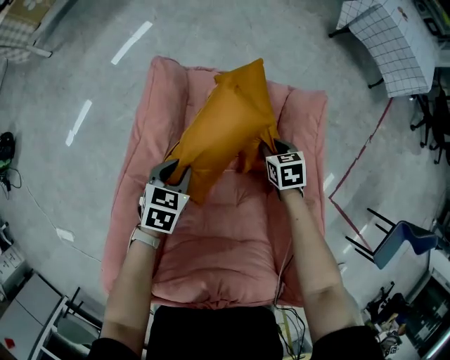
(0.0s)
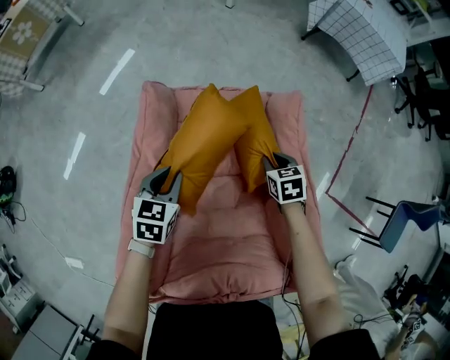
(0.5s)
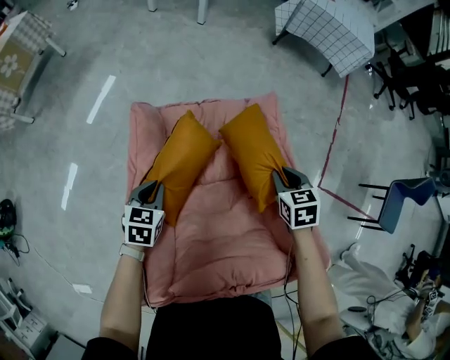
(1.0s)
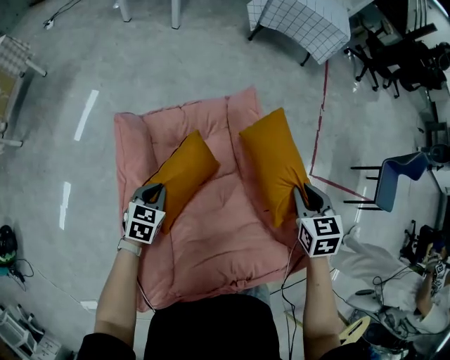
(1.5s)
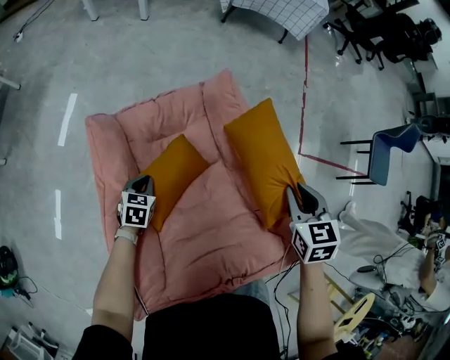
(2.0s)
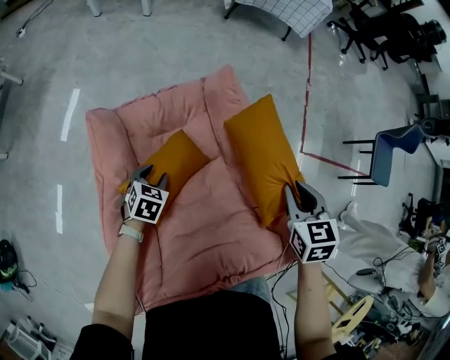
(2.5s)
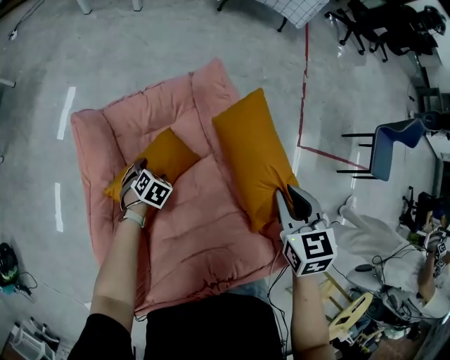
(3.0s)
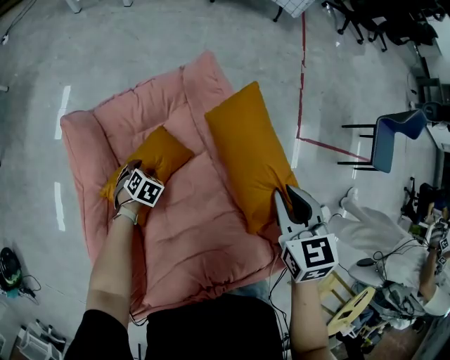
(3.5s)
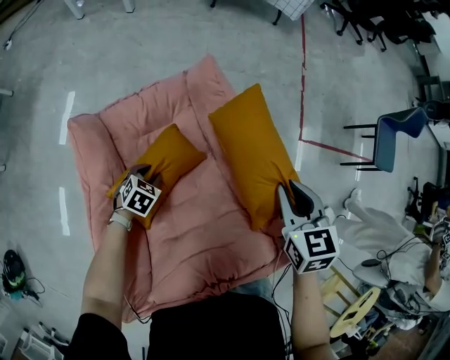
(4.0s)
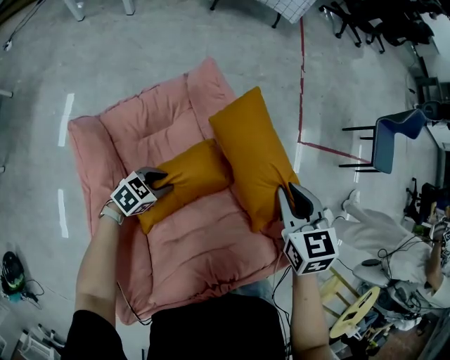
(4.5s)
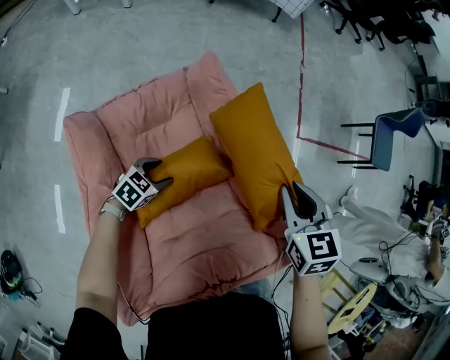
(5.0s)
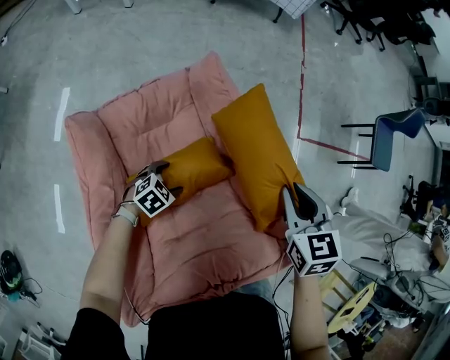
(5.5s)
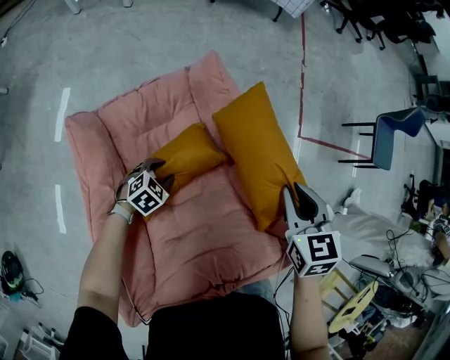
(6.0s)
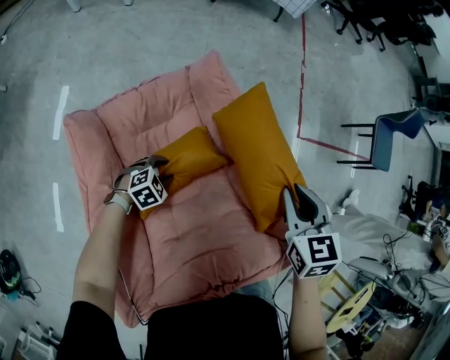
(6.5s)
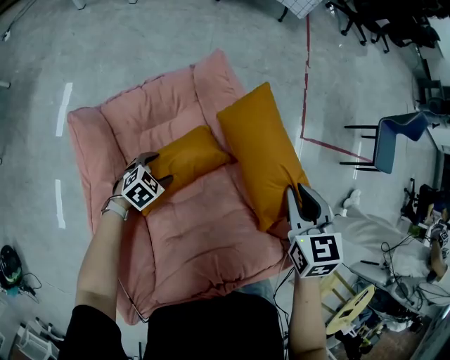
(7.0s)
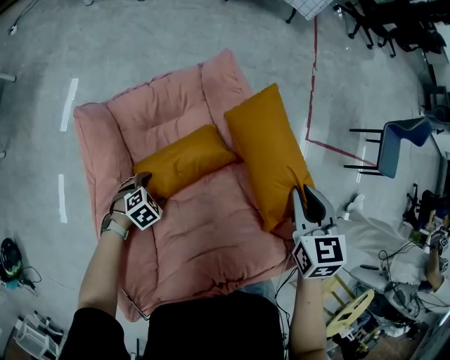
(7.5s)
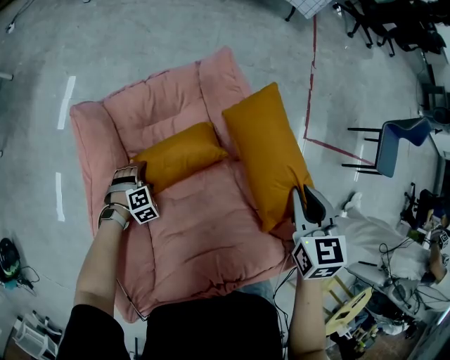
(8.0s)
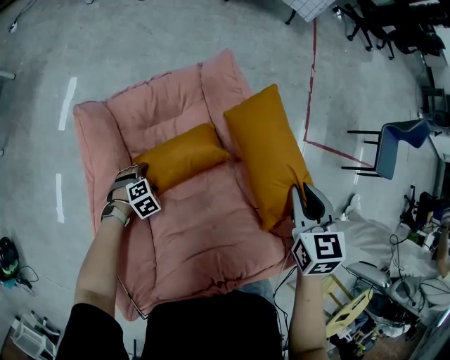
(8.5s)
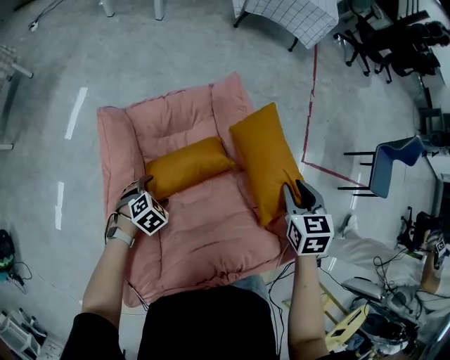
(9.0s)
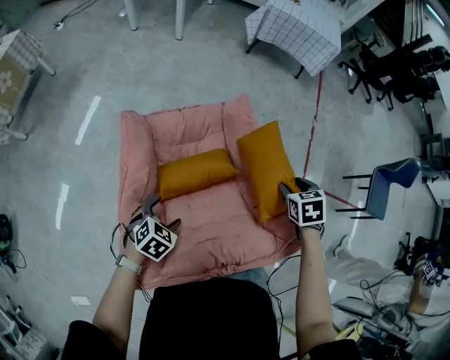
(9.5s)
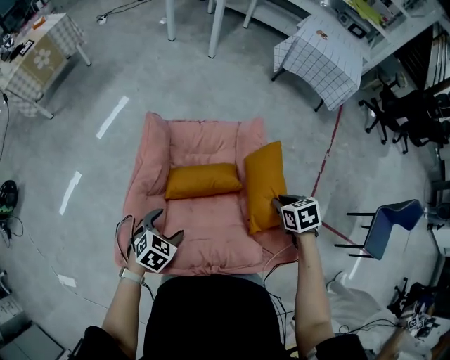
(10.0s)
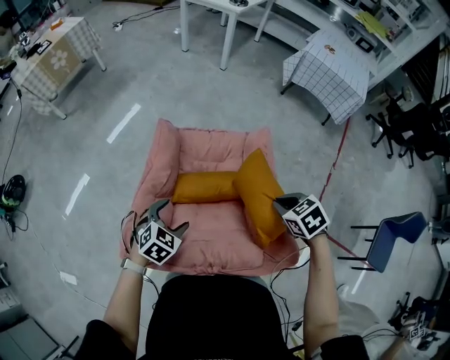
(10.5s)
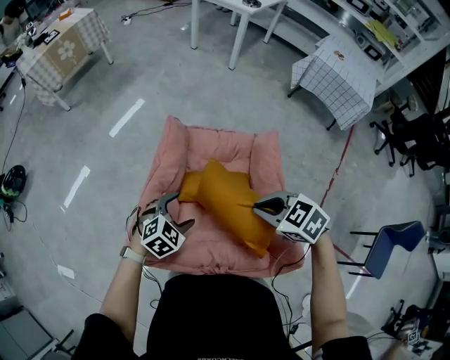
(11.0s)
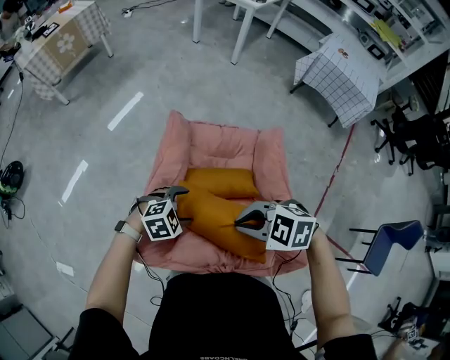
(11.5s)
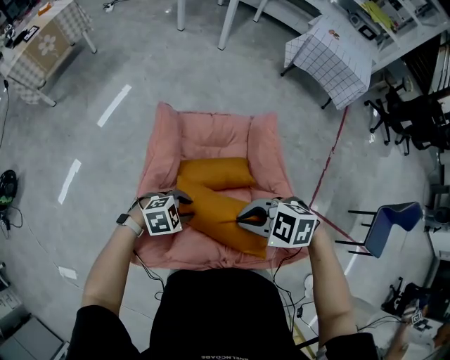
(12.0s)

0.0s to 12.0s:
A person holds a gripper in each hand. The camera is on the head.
0.0s to 2.0s: The left gripper turns by about 20 degrees. The right gripper travels upward by approximately 25 cm, and swivels approximately 40 degrees.
2.0s to 4.0s: The left gripper moves about 10 cm downward and comes back, rotates some 20 degrees, and opens, then closes again.
4.0s to 6.0s: The left gripper opens, then closes again.
6.0s to 8.0s: The left gripper moves approximately 10 cm, changes its angle by about 30 degrees, and opens.
8.0s to 10.0s: The left gripper goes approximately 30 cm upward, and rolls counterclockwise, seen from behind, by roughly 50 degrees. The right gripper turns by about 40 degrees, and opens, then closes once more.
10.0s to 12.0s: The left gripper turns by approximately 40 degrees, and closes up. Meanwhile the right gripper moves approximately 25 cm, and rotates around the line of its fingers by roughly 60 degrees, counterclockwise from behind.

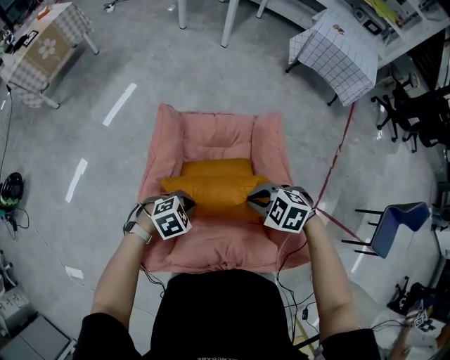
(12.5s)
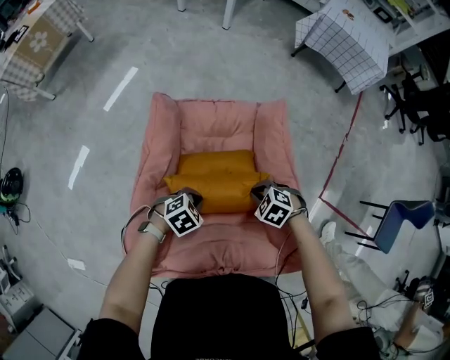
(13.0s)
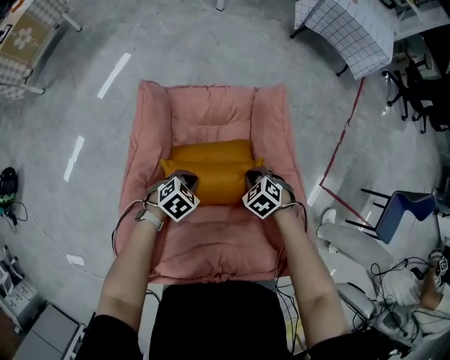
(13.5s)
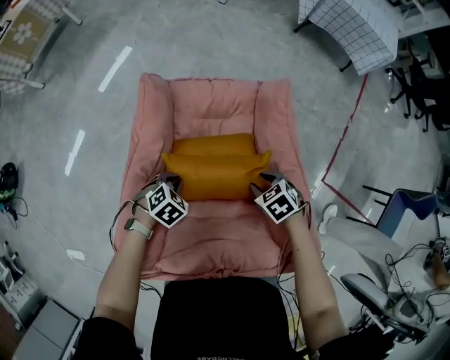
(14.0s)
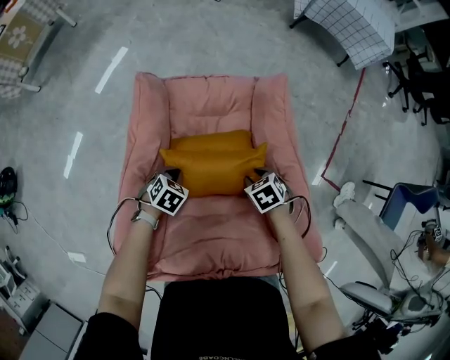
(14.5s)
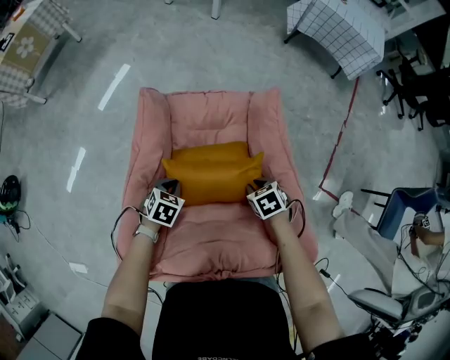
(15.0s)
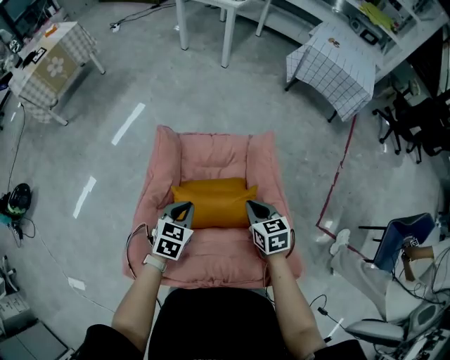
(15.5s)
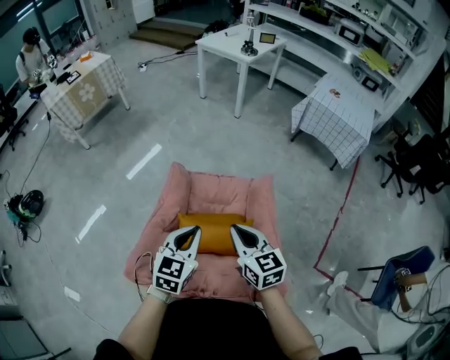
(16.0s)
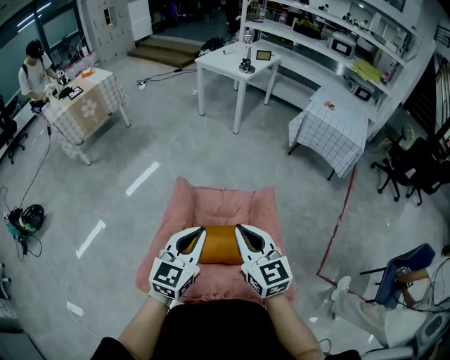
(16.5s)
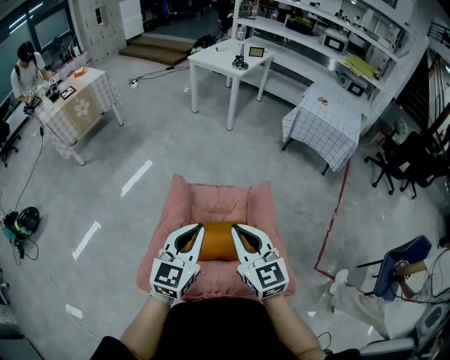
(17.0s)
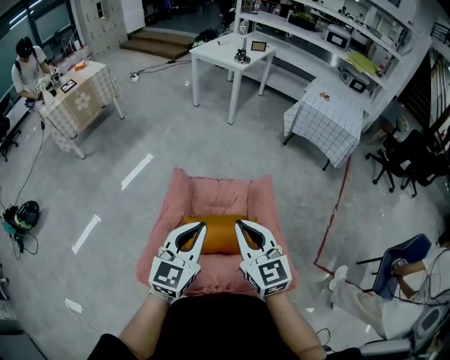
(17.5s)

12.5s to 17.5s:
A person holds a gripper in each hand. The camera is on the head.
12.5s to 15.0s: The left gripper shifts approximately 10 cm downward, and swivels roughly 40 degrees; the right gripper goes roughly 20 cm downward, and rotates around the line of its fingers by approximately 50 degrees, clockwise from behind.
15.0s to 17.5s: Both grippers move upward, about 40 cm. The left gripper points its fingers some 60 degrees further upward, while the right gripper angles its fingers upward, by roughly 60 degrees.

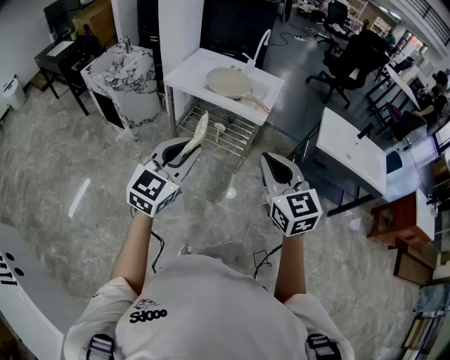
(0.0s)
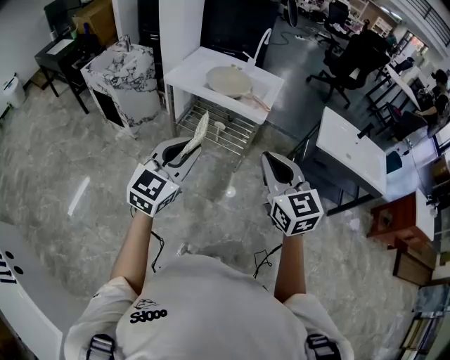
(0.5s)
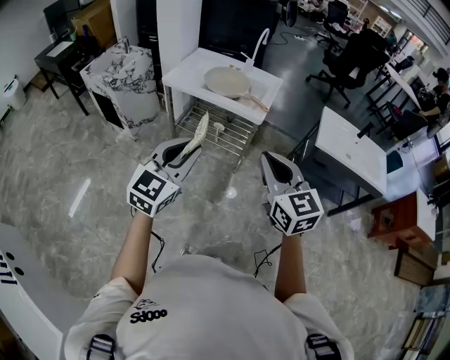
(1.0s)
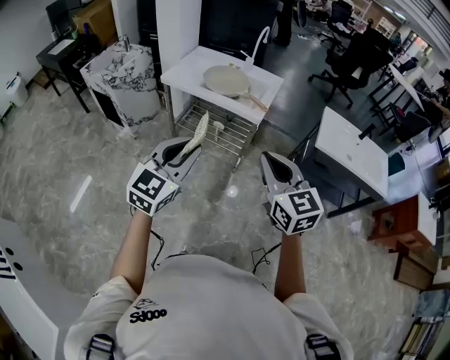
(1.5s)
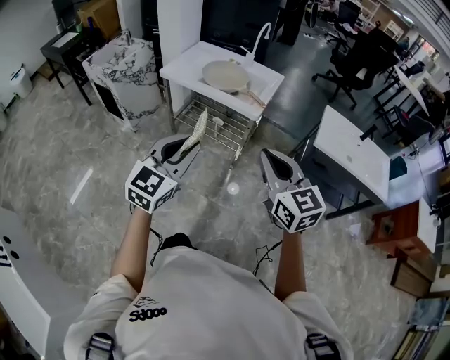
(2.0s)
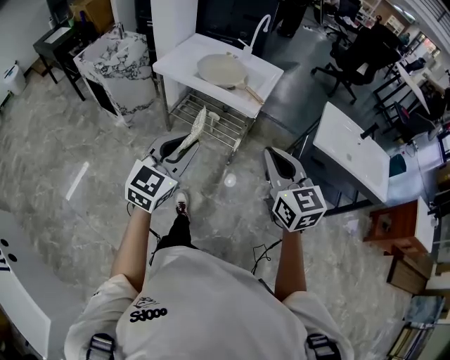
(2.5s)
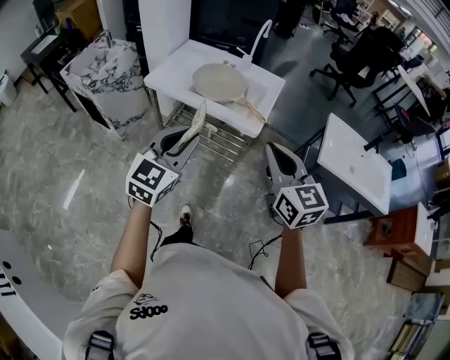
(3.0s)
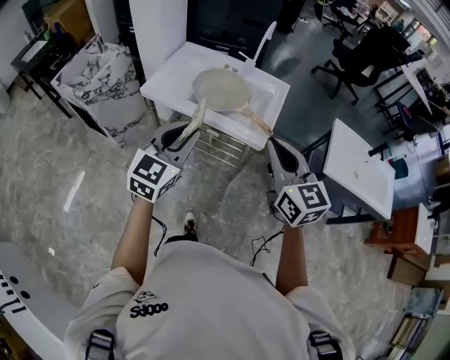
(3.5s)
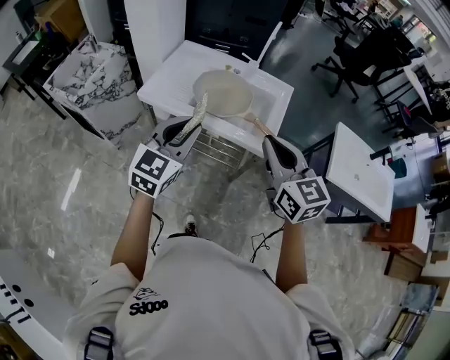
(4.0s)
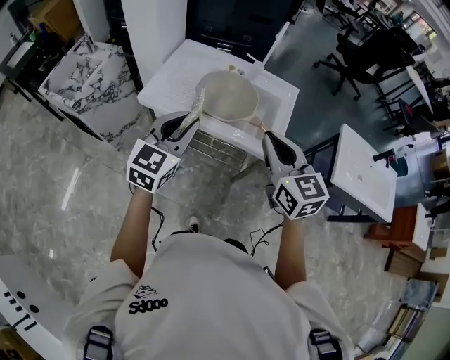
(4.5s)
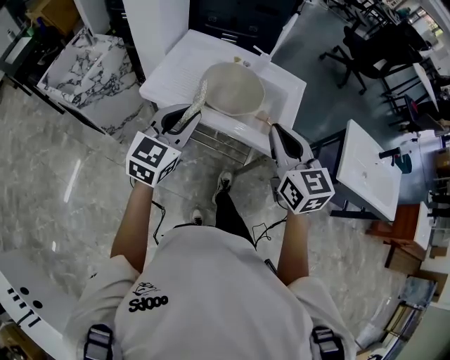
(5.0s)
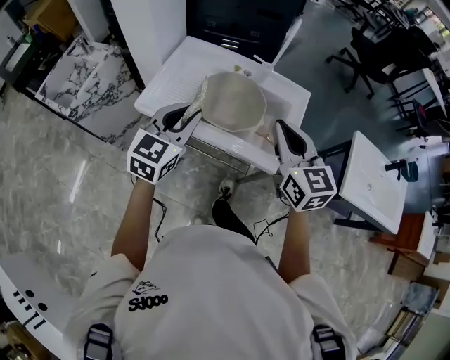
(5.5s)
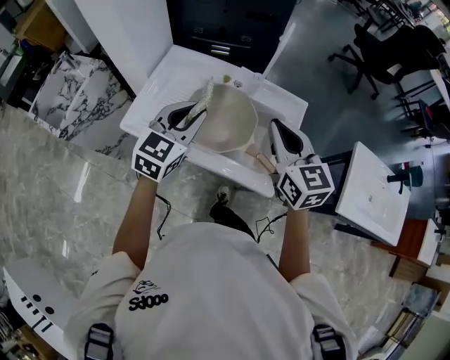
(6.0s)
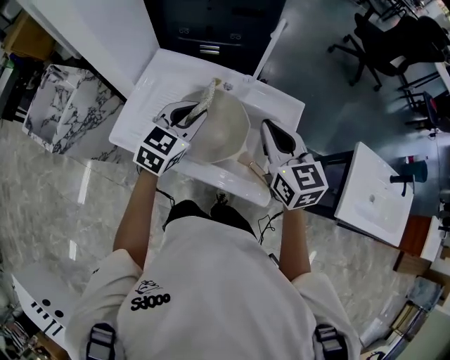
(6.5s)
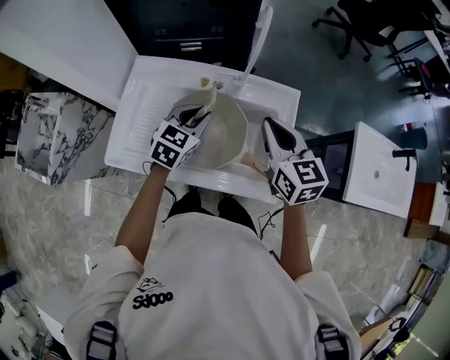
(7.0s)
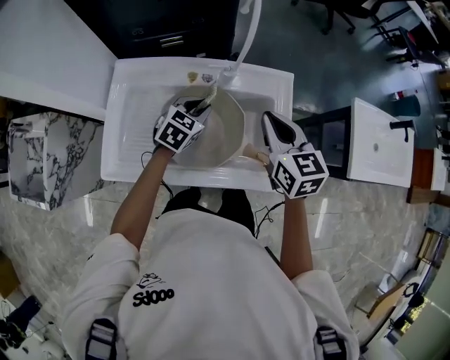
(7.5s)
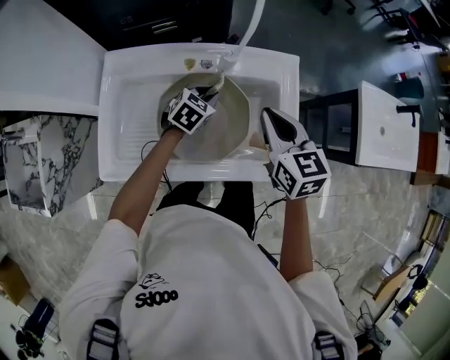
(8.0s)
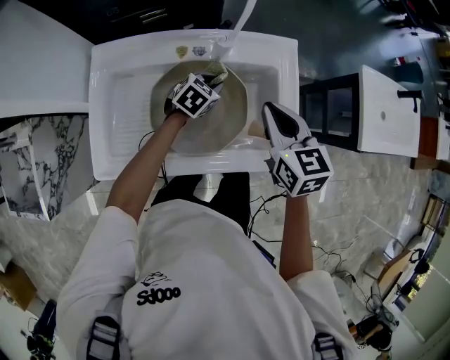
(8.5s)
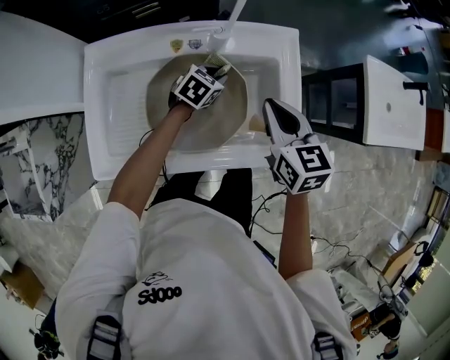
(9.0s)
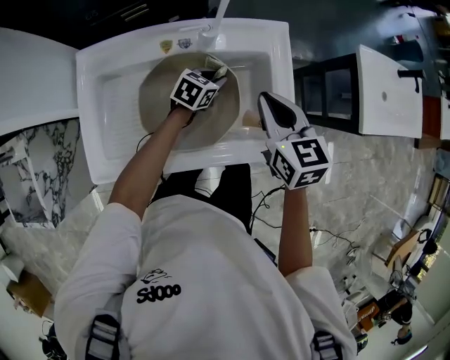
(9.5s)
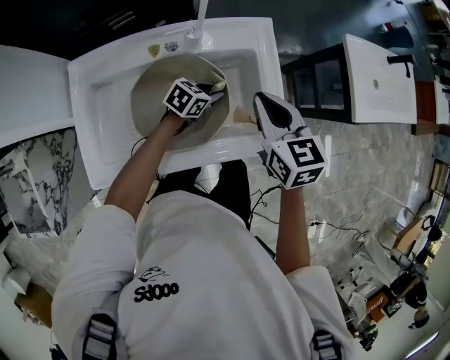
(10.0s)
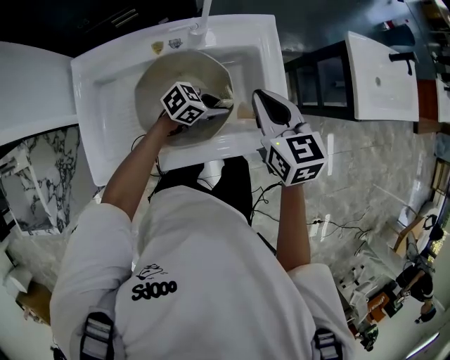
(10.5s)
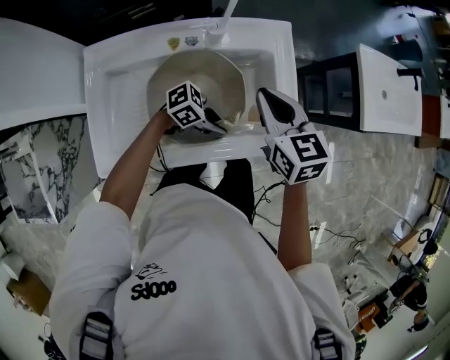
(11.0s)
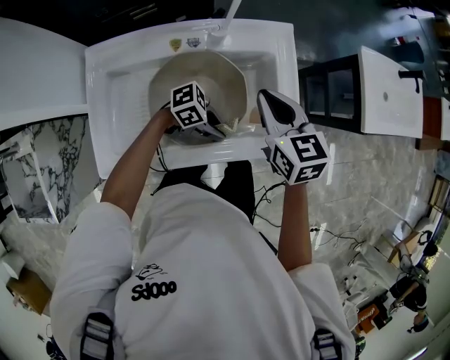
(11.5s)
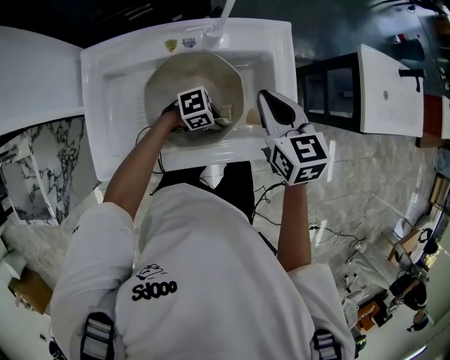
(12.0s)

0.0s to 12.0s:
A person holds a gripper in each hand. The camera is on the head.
0.0s to 2.0s: Both grippers travel together to the right, some 5 cm.
2.0s to 4.0s: The grippers both shift forward by approximately 30 cm.
4.0s to 6.0s: Both grippers move forward, roughly 25 cm.
6.0s to 8.0s: The left gripper travels downward by some 25 cm, and turns by approximately 40 degrees; the right gripper goes about 10 cm downward, and turns by roughly 30 degrees.
8.0s to 10.0s: The left gripper goes about 10 cm to the right and downward, and changes its angle by roughly 30 degrees.
10.0s to 12.0s: The left gripper ends up about 10 cm from where it was, and swivels some 40 degrees.
